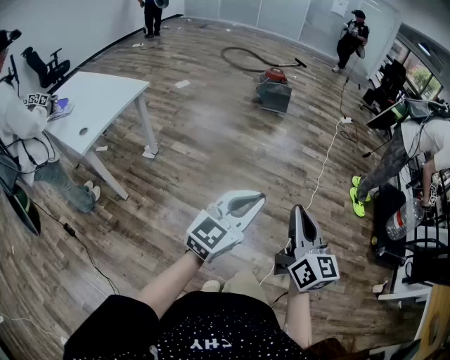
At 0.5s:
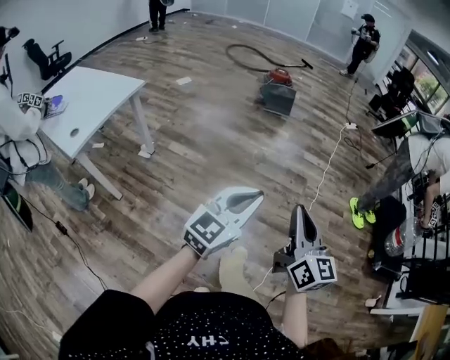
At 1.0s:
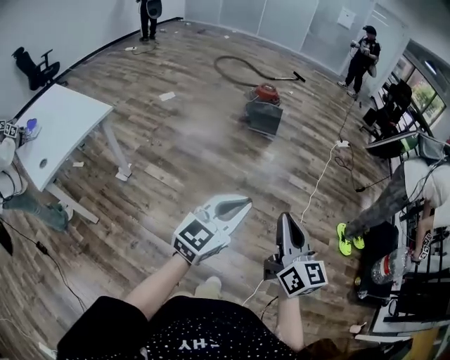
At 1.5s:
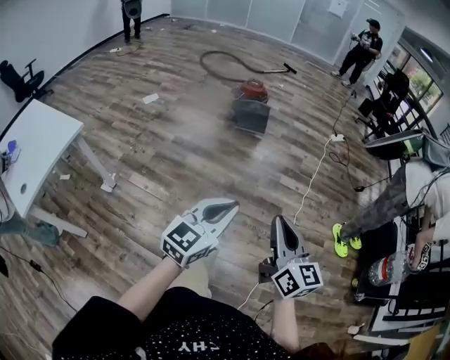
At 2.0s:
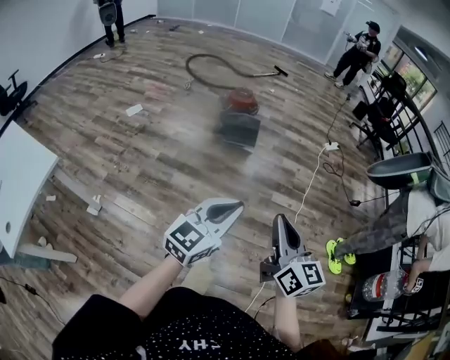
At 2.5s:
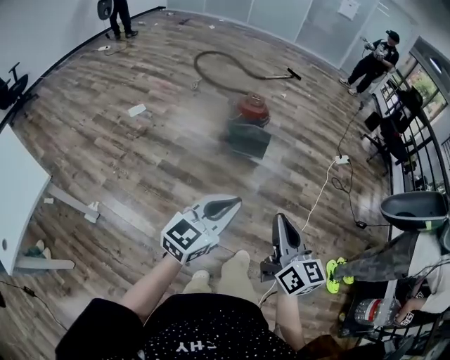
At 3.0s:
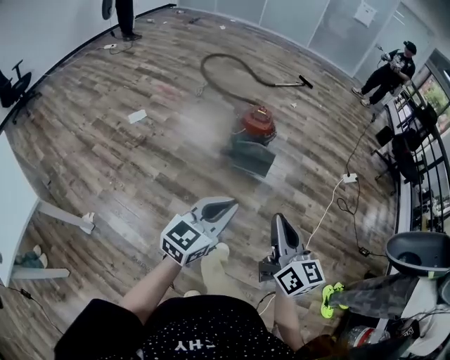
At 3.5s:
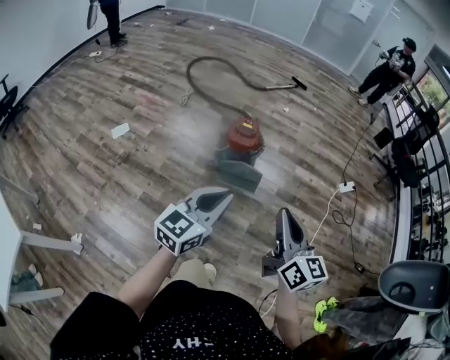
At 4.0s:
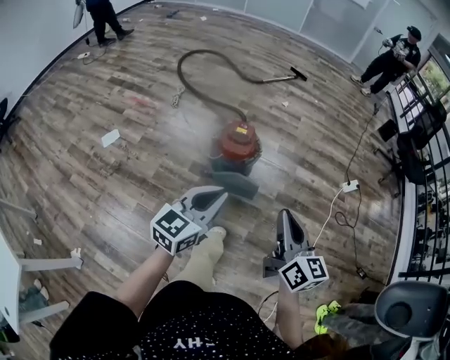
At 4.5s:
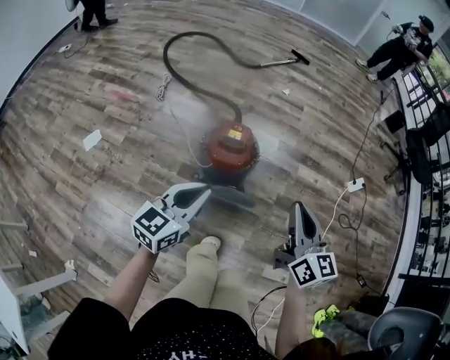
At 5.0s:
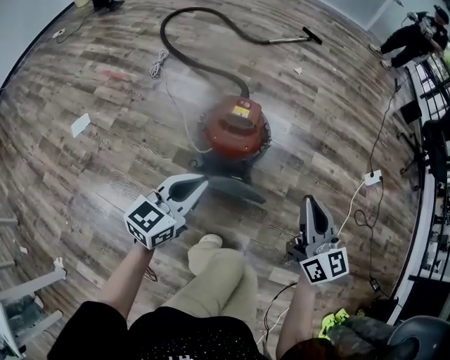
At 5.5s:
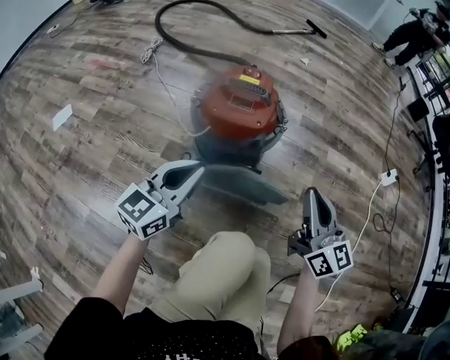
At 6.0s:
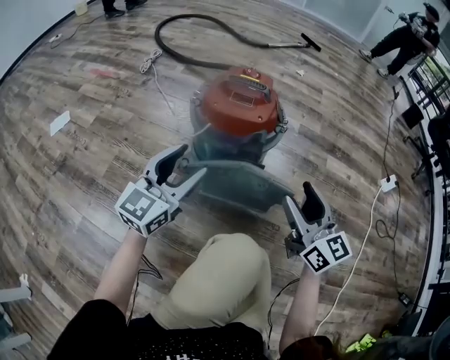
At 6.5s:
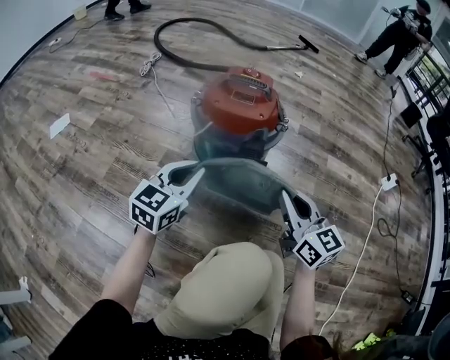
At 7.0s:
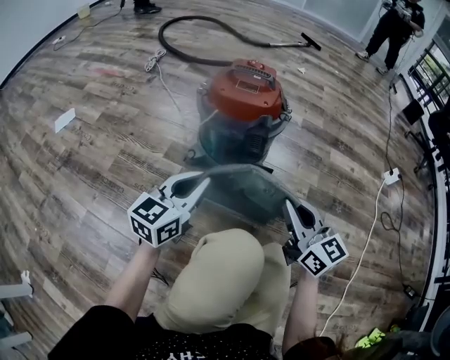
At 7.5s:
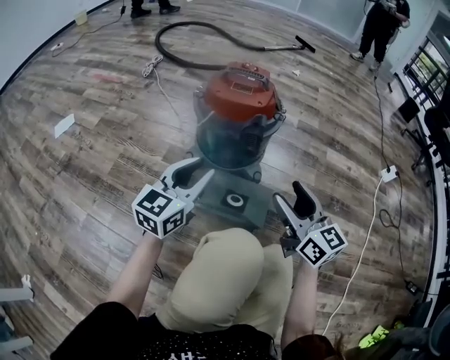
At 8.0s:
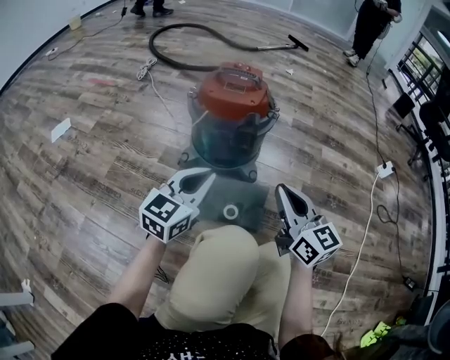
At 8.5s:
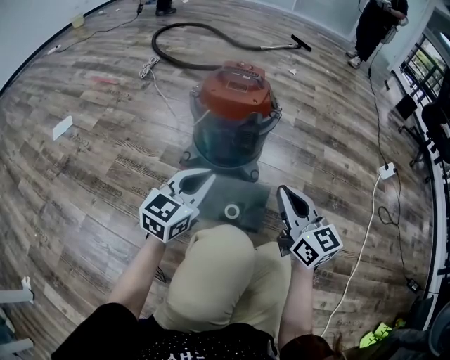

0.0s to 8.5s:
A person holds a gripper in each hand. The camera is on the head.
0.0s to 2.0s: The pair of grippers is taken forward, approximately 60 cm.
2.0s to 4.0s: Both grippers are carried forward, approximately 70 cm.
4.0s to 6.5s: Both grippers move downward and forward, some 60 cm. The left gripper opens, then closes again. The right gripper opens and closes again.
6.5s to 8.5s: The grippers both shift backward by approximately 5 cm. The right gripper opens, then closes once more. Meanwhile the left gripper opens, then closes once more.

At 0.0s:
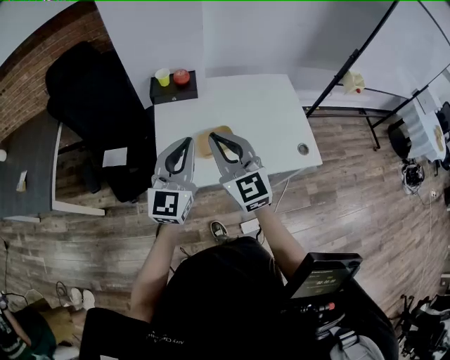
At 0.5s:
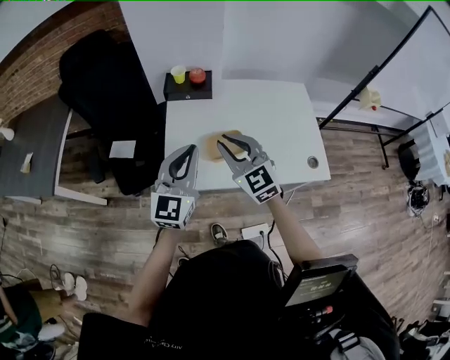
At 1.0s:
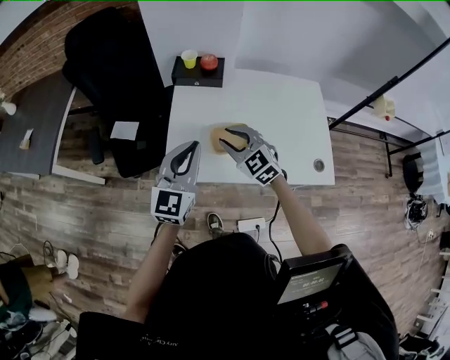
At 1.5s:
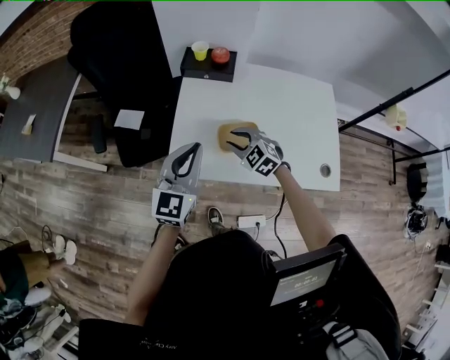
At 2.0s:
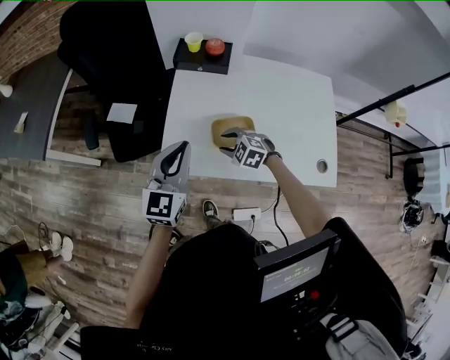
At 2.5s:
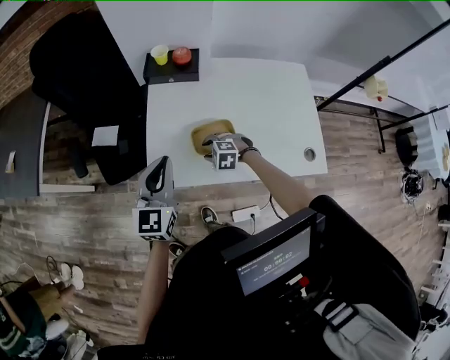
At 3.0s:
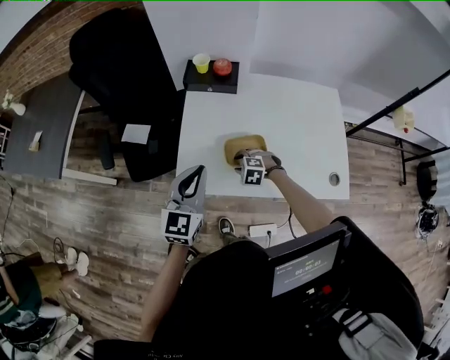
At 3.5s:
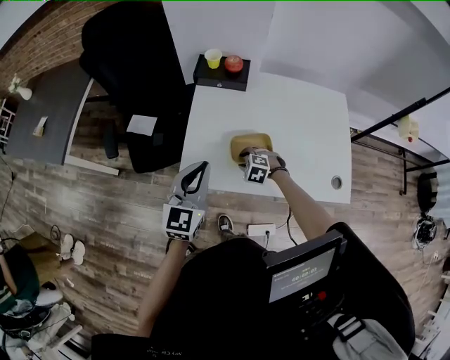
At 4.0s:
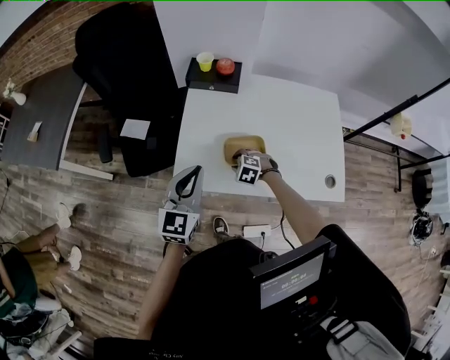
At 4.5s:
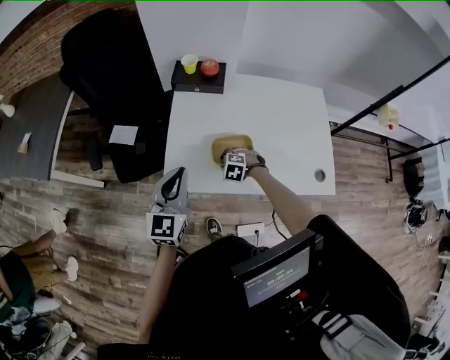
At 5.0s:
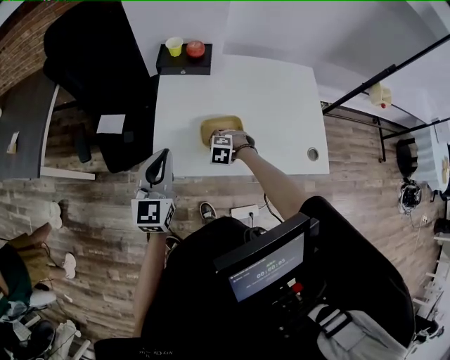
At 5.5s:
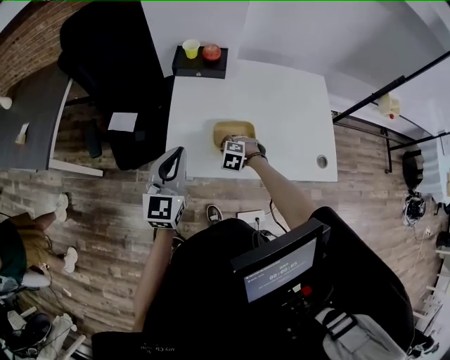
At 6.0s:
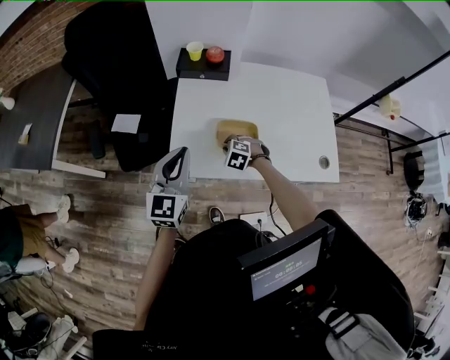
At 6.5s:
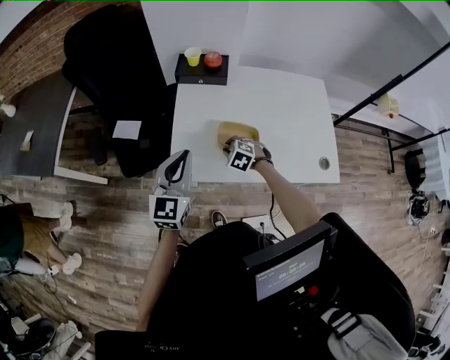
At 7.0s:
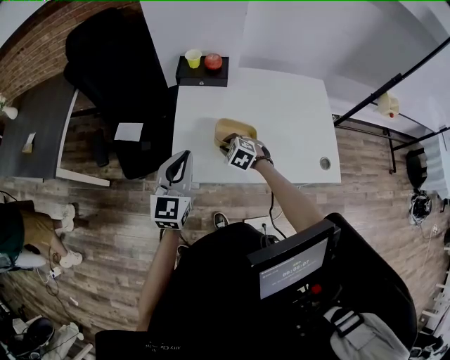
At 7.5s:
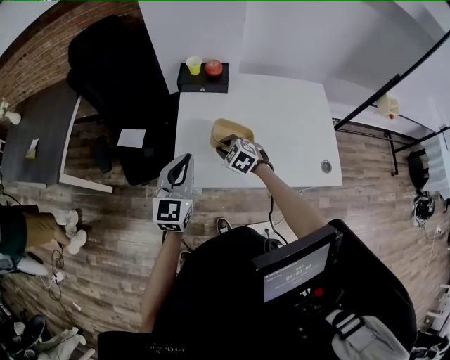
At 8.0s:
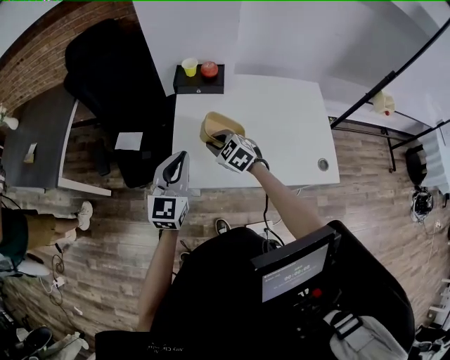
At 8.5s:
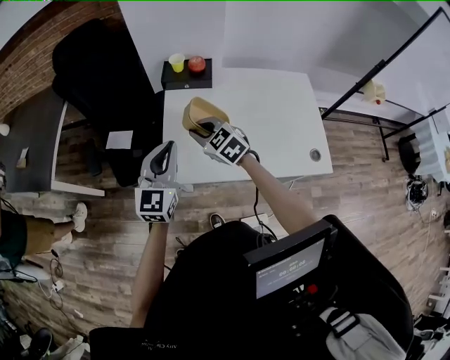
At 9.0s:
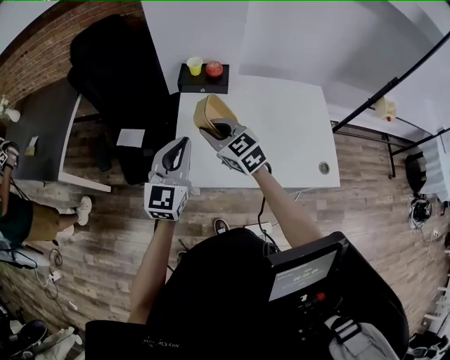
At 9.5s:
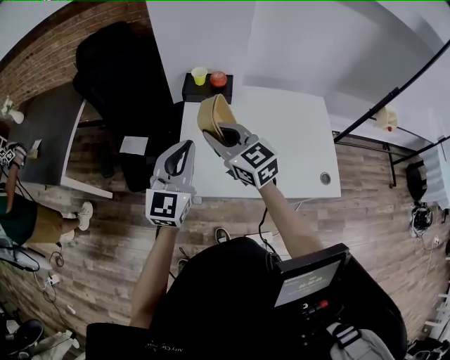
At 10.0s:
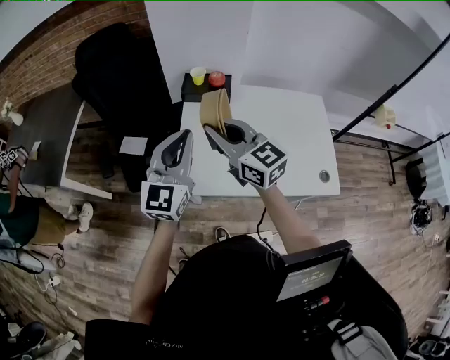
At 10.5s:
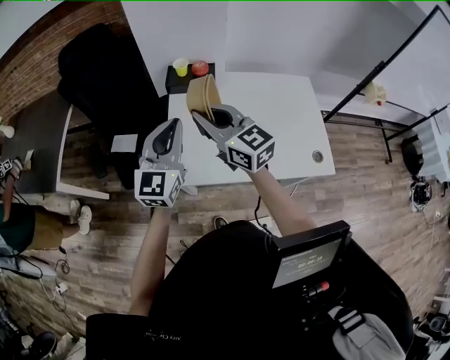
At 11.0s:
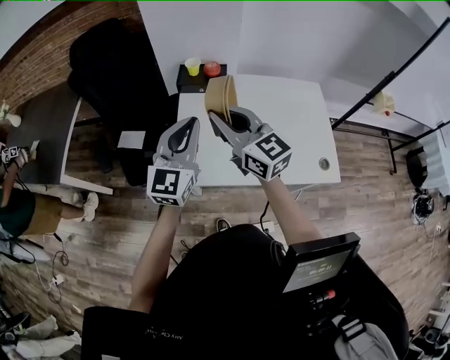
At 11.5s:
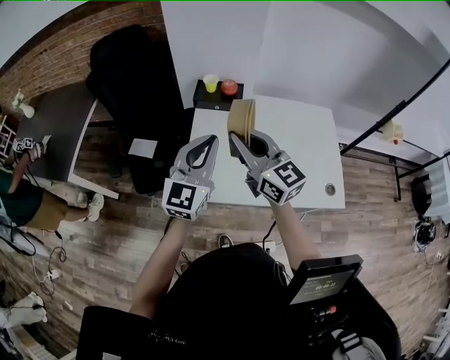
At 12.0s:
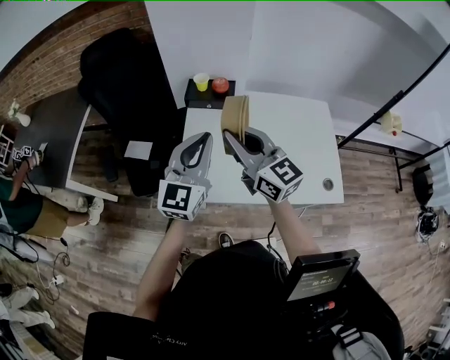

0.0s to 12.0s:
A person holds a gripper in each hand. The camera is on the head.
0.0s to 2.0s: The left gripper travels downward by about 10 cm. Meanwhile the right gripper shifts about 35 cm downward, angles its fingers downward, by some 50 degrees, and opens.
2.0s to 4.0s: The right gripper shifts approximately 5 cm downward.
4.0s to 6.0s: The right gripper closes.
6.0s to 8.0s: The right gripper shifts roughly 15 cm upward, and swivels about 30 degrees.
8.0s to 10.0s: The left gripper goes some 10 cm upward; the right gripper goes roughly 25 cm upward, and tips its fingers upward by about 40 degrees.
10.0s to 12.0s: Both grippers travel together to the right, roughly 5 cm.

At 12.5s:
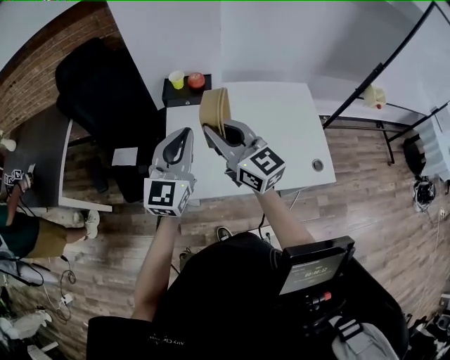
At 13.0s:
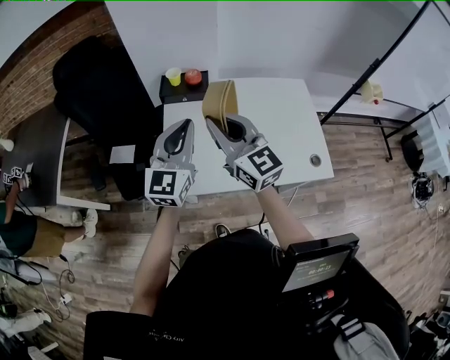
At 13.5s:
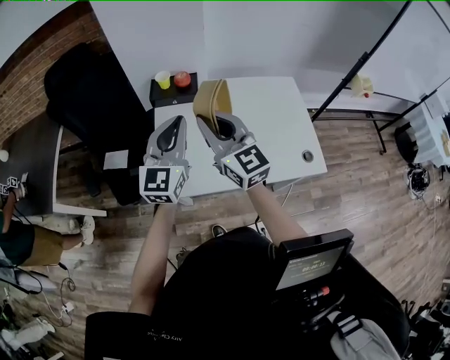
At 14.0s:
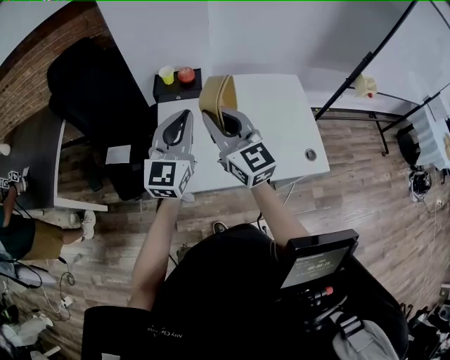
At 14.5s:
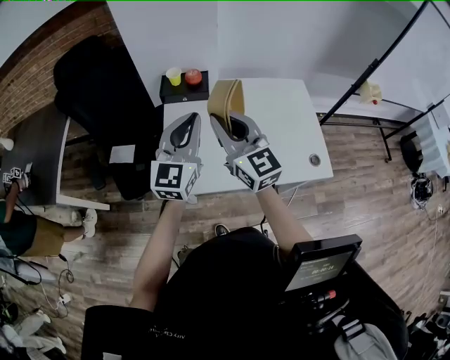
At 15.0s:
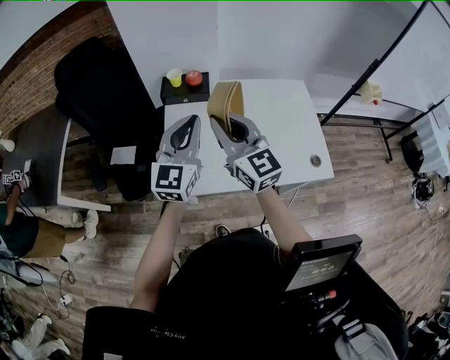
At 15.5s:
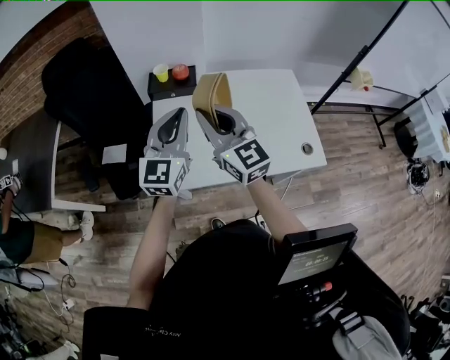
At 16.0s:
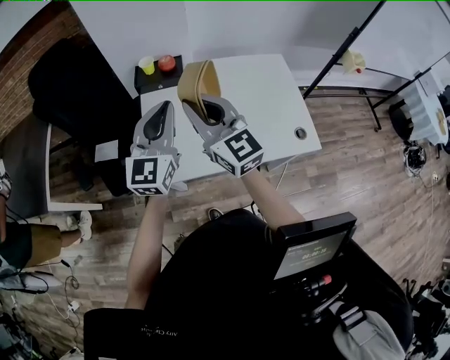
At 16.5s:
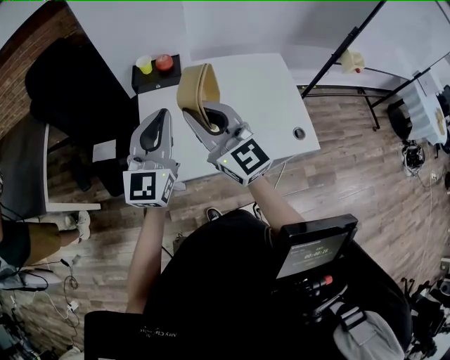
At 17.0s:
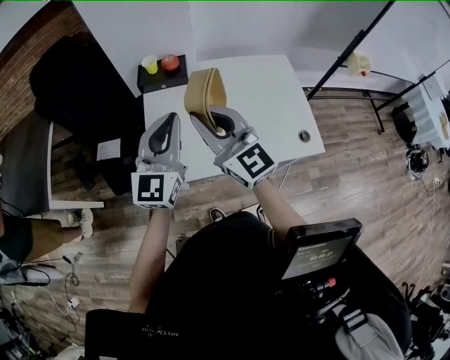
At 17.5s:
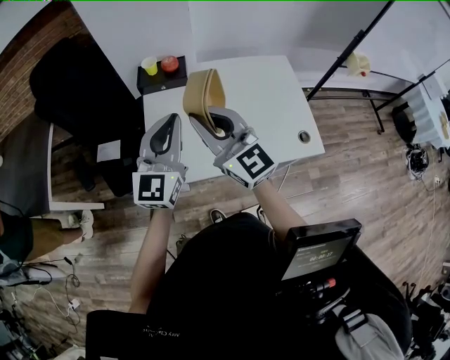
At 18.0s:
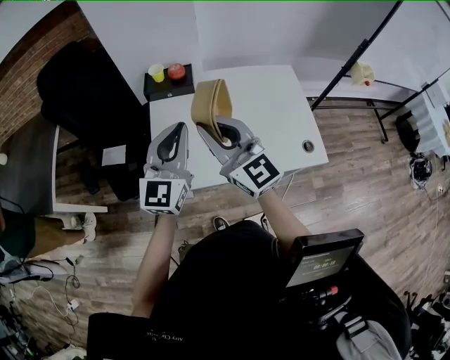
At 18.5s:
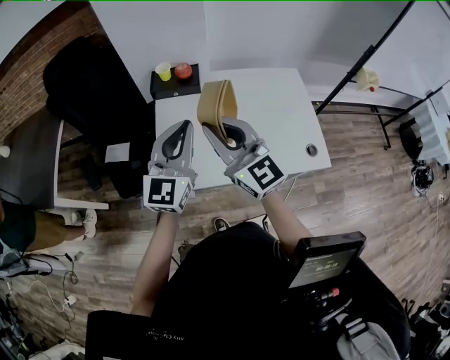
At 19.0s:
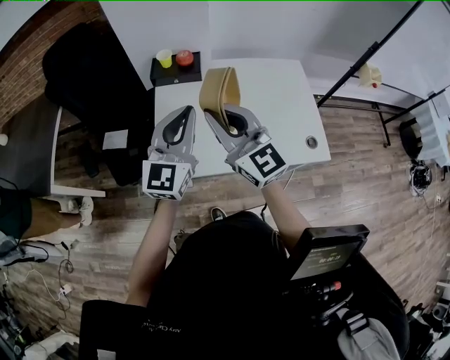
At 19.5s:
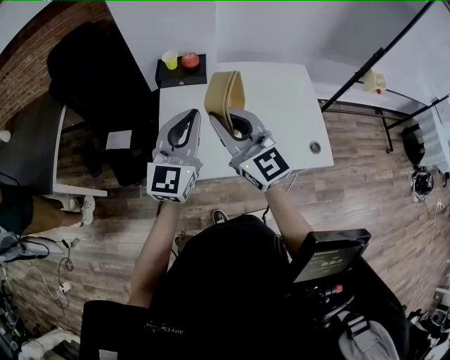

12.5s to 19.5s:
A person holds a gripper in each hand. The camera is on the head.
12.5s to 14.5s: The grippers make only small movements.
14.5s to 16.0s: Neither gripper changes place.
16.0s to 17.5s: The grippers make only small movements.
17.5s to 19.5s: Neither gripper changes place.
